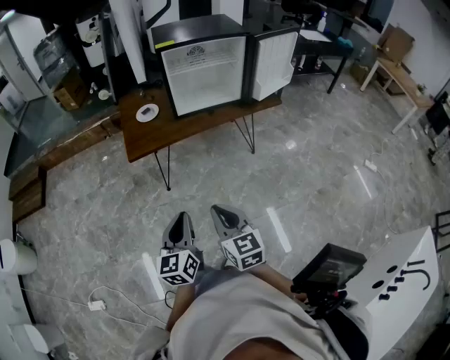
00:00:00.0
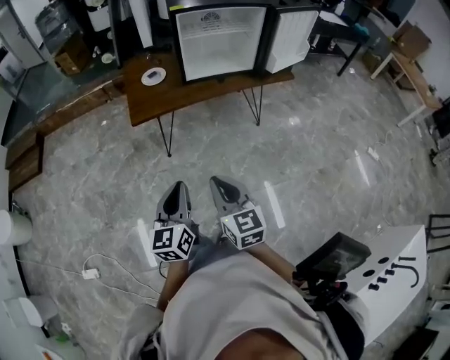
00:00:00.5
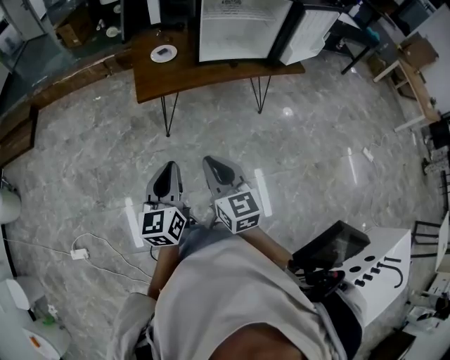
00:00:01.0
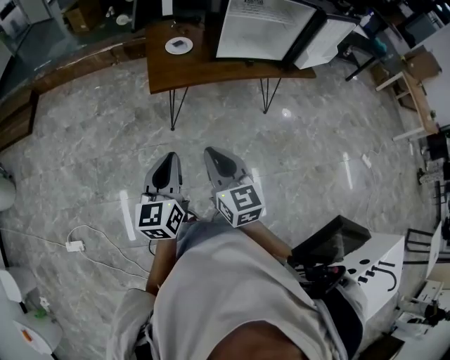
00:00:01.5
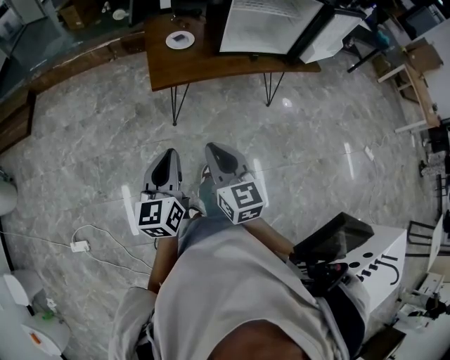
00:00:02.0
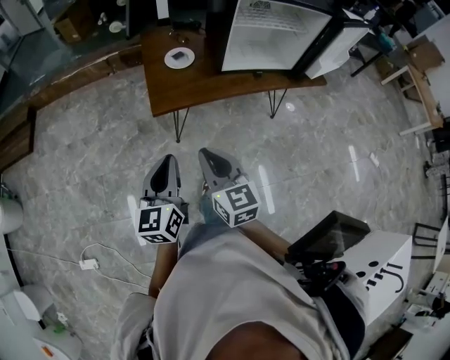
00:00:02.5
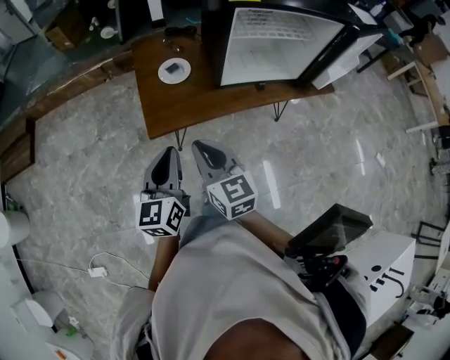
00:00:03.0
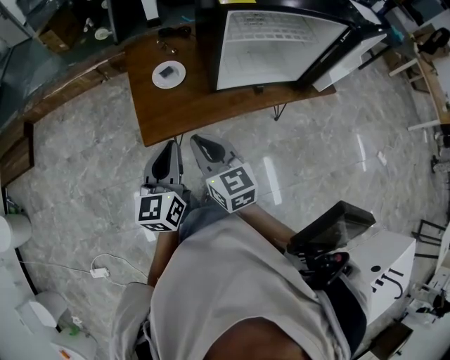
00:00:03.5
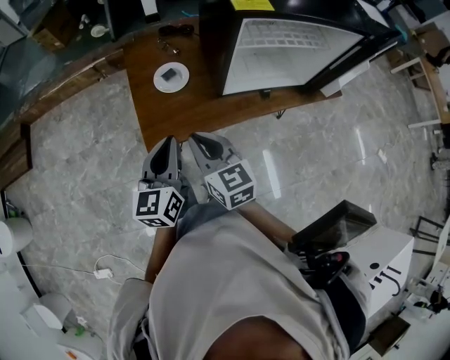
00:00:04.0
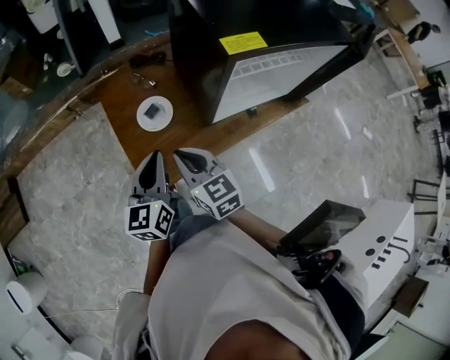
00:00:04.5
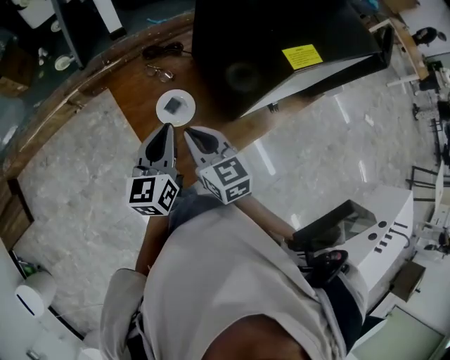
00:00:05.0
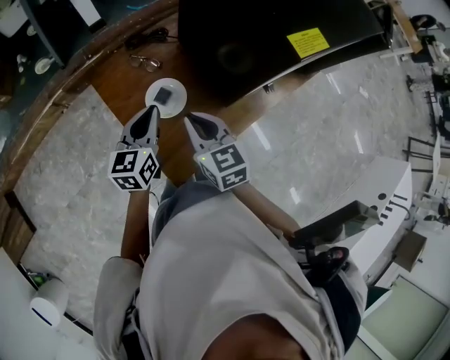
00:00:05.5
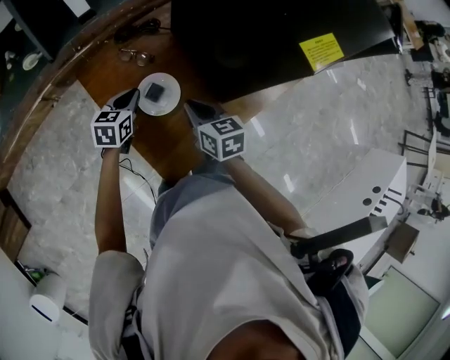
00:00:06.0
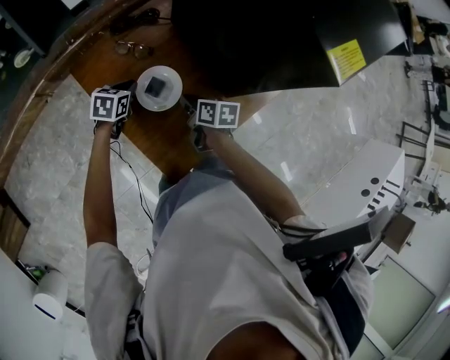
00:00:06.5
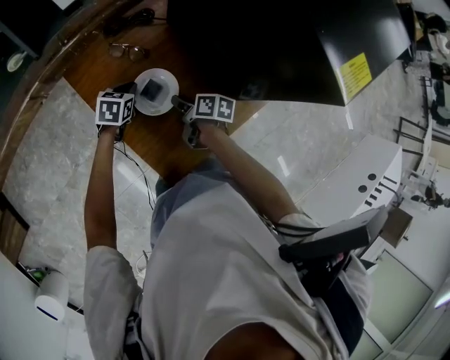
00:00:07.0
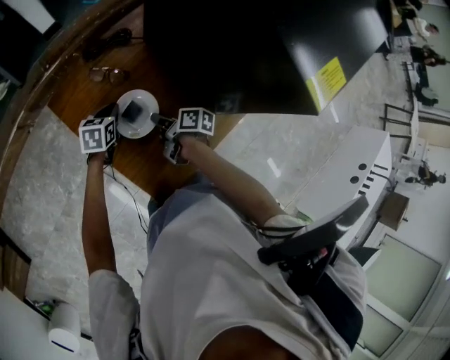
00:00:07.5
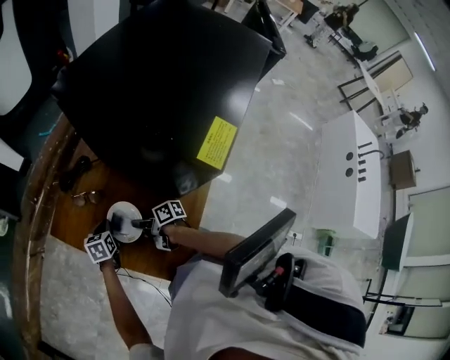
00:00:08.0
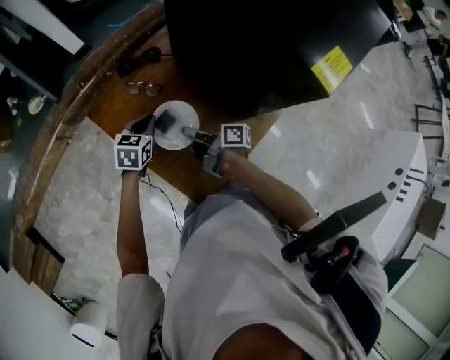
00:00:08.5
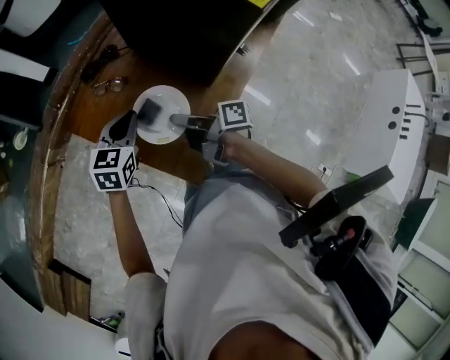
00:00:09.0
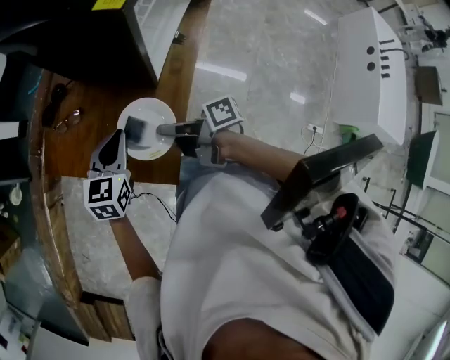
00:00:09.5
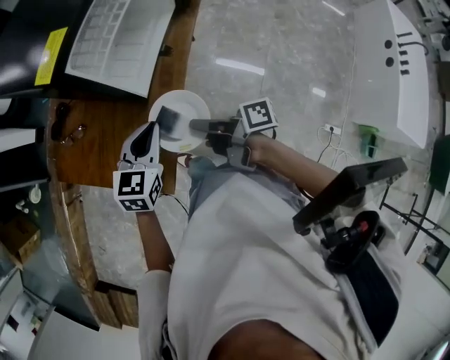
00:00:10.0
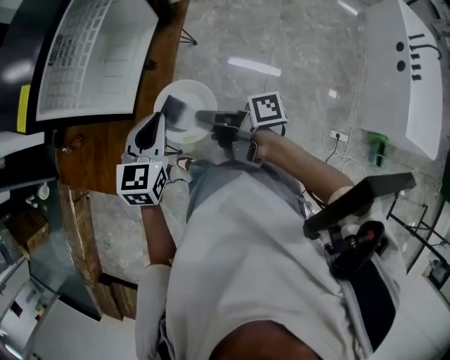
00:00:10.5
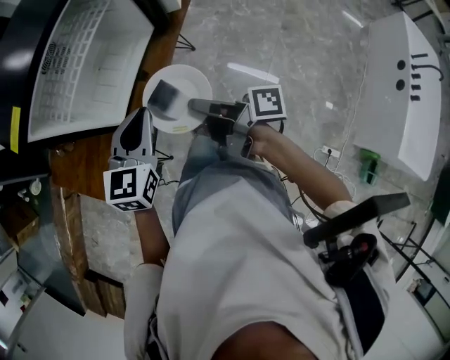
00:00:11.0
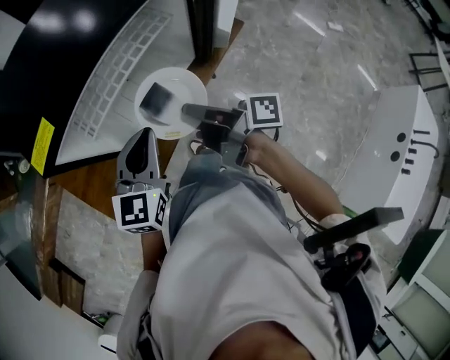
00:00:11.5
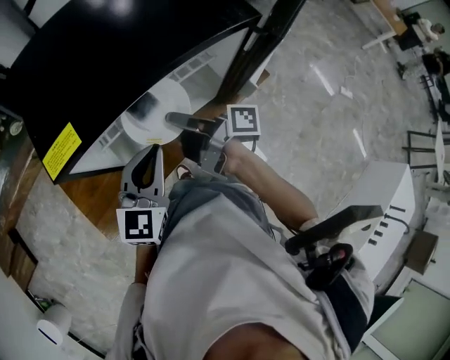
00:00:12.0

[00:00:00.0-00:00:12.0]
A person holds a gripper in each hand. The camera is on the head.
00:00:00.0 to 00:00:02.0: Both grippers travel together to the left and forward, roughly 30 cm.
00:00:02.0 to 00:00:04.0: The pair of grippers is taken forward, about 60 cm.
00:00:04.0 to 00:00:06.0: Both grippers are carried roughly 50 cm. The left gripper tilts its fingers about 30 degrees downward; the right gripper changes its angle by some 30 degrees.
00:00:06.0 to 00:00:08.0: Both grippers travel together downward and forward, some 10 cm. The right gripper rolls clockwise, seen from behind, by about 60 degrees.
00:00:08.0 to 00:00:10.0: Both grippers are carried to the right and backward, some 50 cm. The left gripper travels upward by roughly 20 cm, and changes its angle by some 40 degrees, while the right gripper rotates roughly 20 degrees.
00:00:10.0 to 00:00:12.0: The right gripper moves some 50 cm, and turns by some 30 degrees. Meanwhile the left gripper shifts by some 40 cm, and rotates roughly 40 degrees.

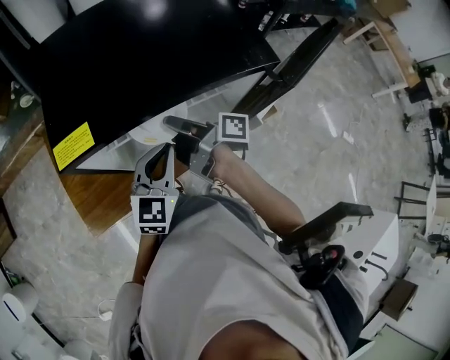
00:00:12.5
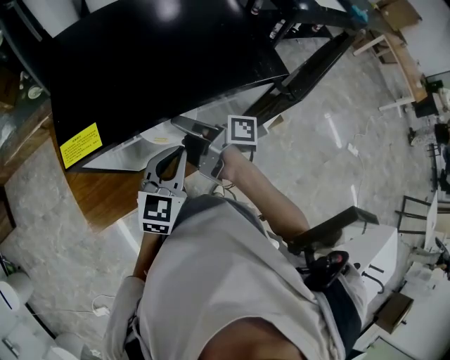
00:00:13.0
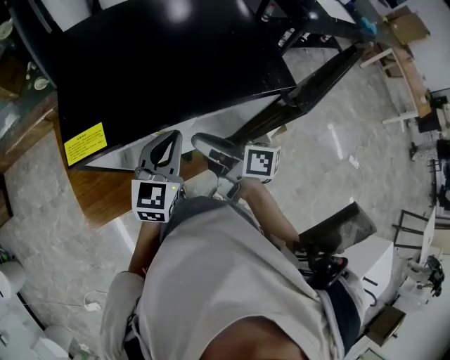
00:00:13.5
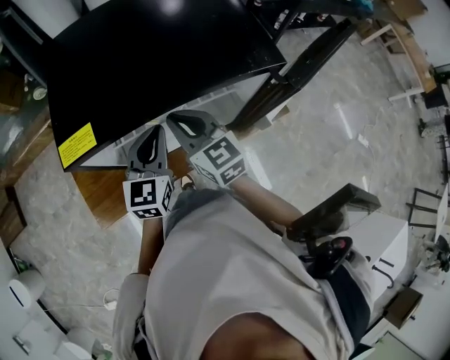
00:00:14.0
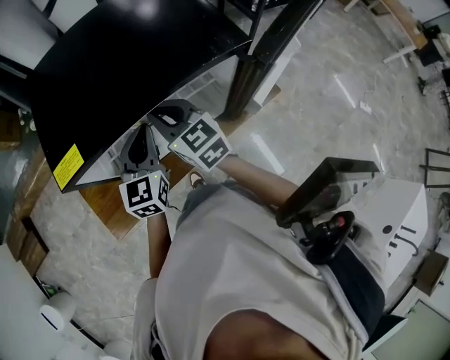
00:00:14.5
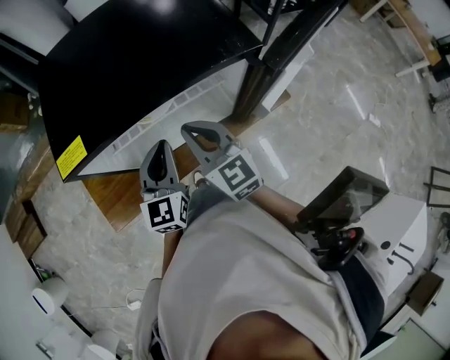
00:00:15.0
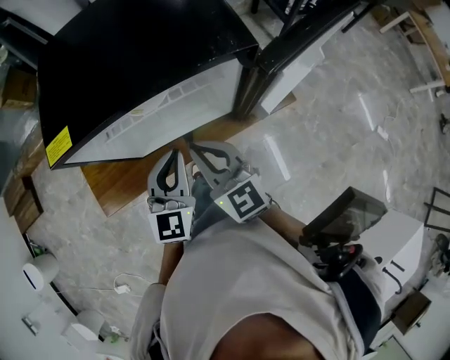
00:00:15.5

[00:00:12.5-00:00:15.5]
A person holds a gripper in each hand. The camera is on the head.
00:00:12.5 to 00:00:14.0: The left gripper travels forward by some 5 cm. The right gripper rolls counterclockwise, seen from behind, by approximately 80 degrees, and opens and closes again.
00:00:14.0 to 00:00:15.5: The grippers both shift backward and to the right by approximately 15 cm.

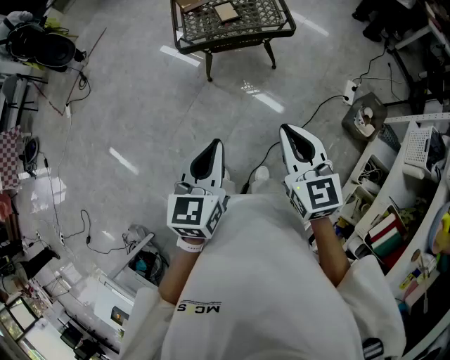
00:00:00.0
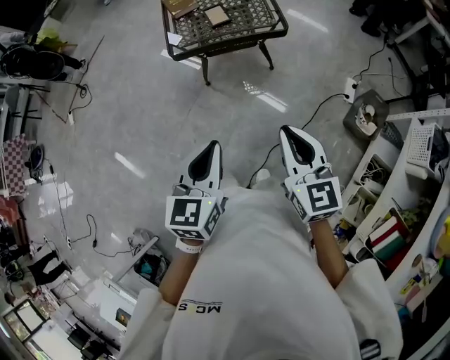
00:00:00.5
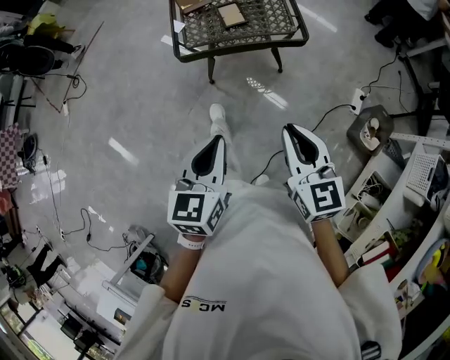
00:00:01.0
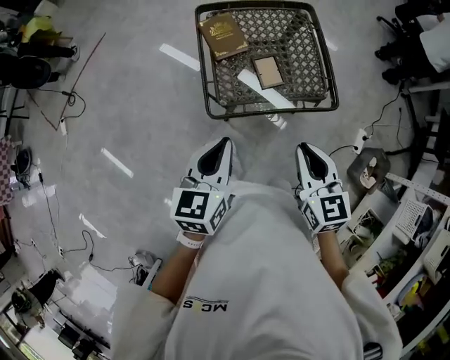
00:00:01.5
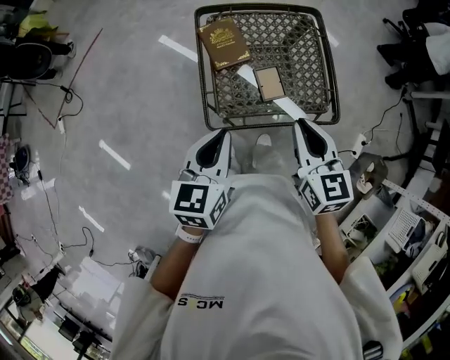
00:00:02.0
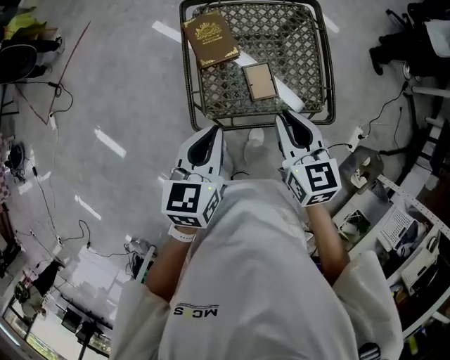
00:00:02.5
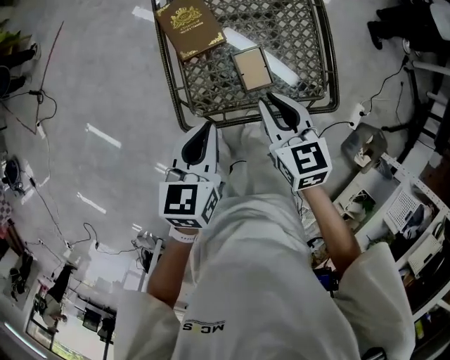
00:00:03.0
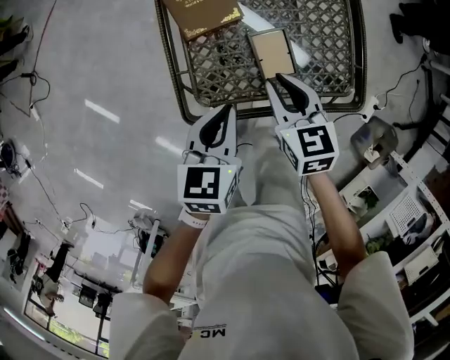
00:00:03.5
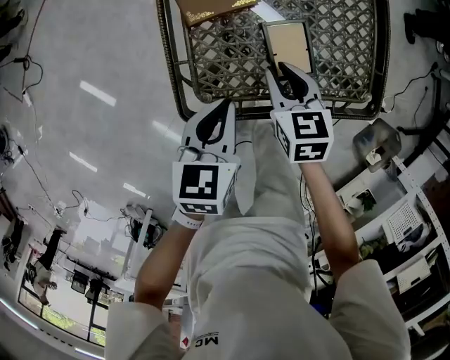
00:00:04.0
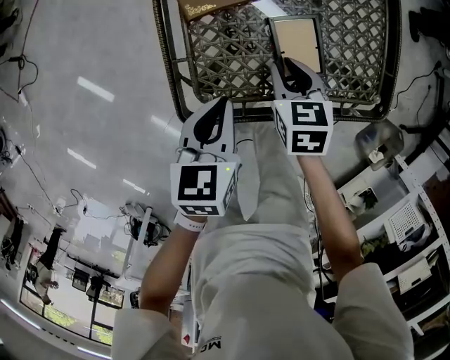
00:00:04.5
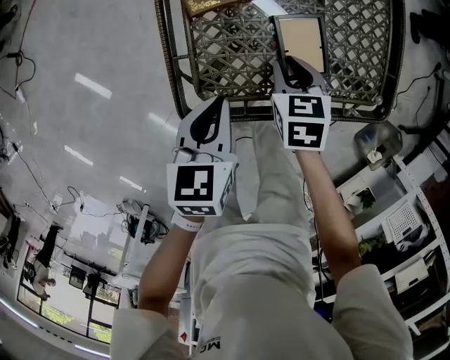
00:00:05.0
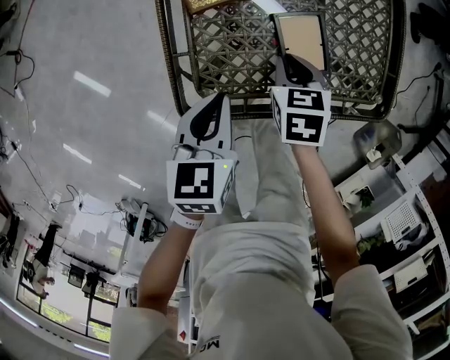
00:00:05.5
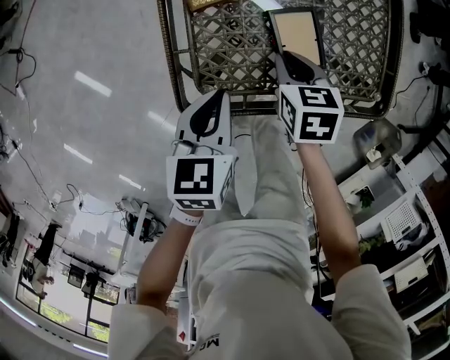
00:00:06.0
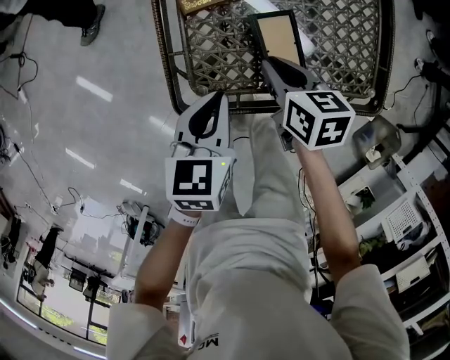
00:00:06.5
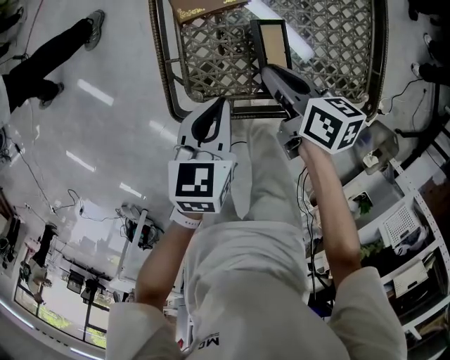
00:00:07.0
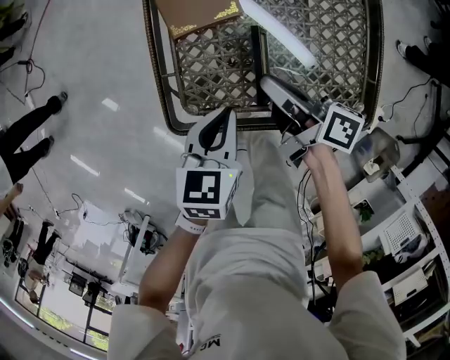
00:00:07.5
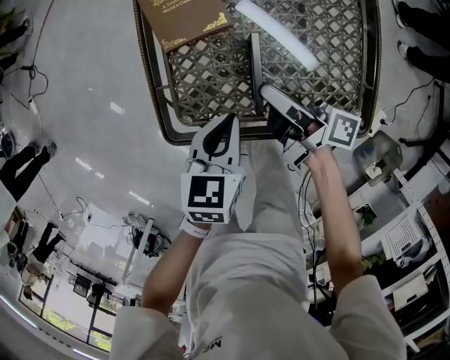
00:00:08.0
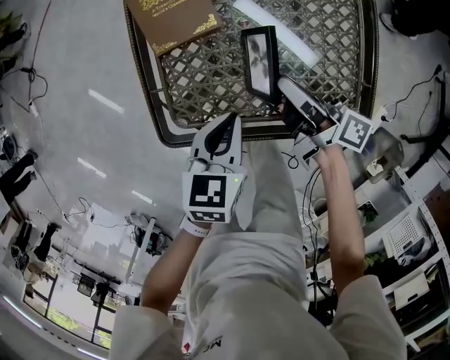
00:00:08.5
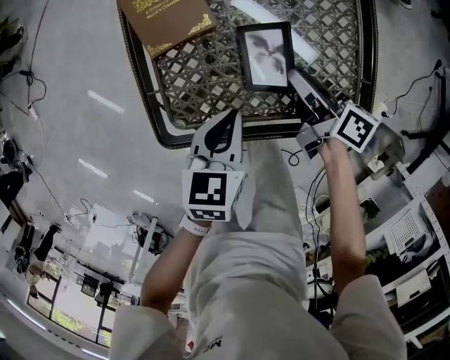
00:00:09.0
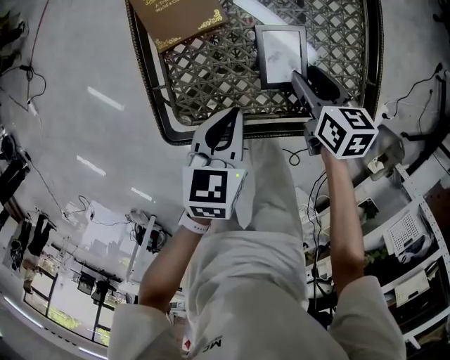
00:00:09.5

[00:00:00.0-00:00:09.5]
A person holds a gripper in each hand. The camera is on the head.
00:00:00.0 to 00:00:02.0: Both grippers are carried forward, roughly 50 cm.
00:00:02.0 to 00:00:04.0: The grippers both shift downward by about 30 cm. The right gripper changes its angle by about 30 degrees.
00:00:04.0 to 00:00:05.5: The right gripper goes approximately 5 cm downward.
00:00:05.5 to 00:00:07.5: The right gripper travels upward by some 10 cm, and tips its fingers upward by roughly 50 degrees; the left gripper shifts some 5 cm to the right.
00:00:07.5 to 00:00:09.5: The right gripper is displaced to the right and downward by roughly 15 cm, tips its fingers downward by about 30 degrees, and opens its fingers.

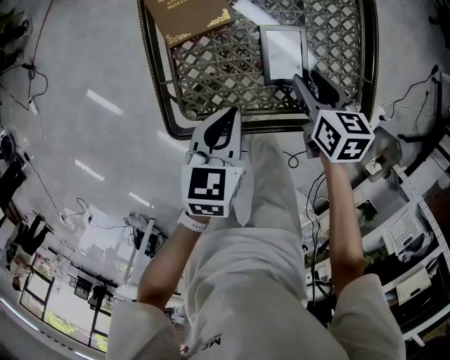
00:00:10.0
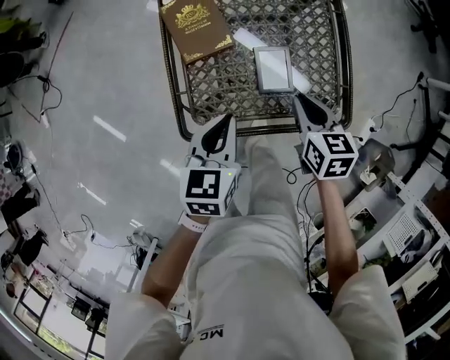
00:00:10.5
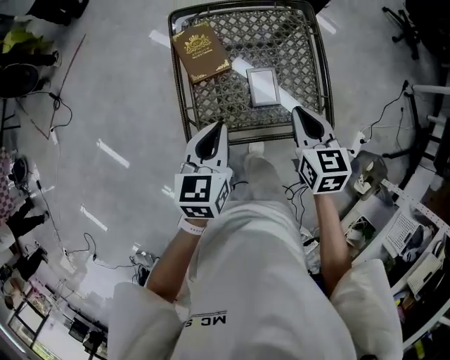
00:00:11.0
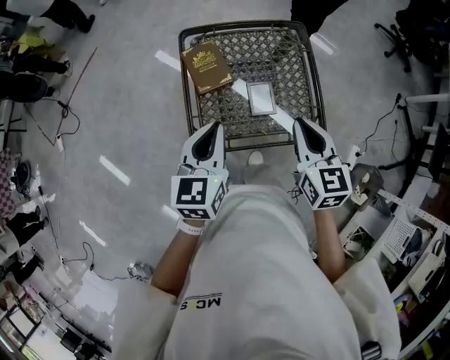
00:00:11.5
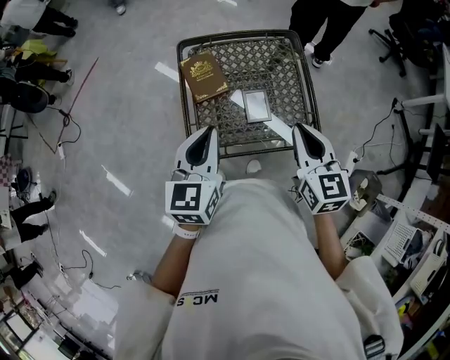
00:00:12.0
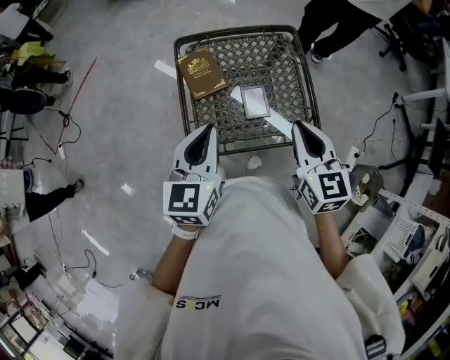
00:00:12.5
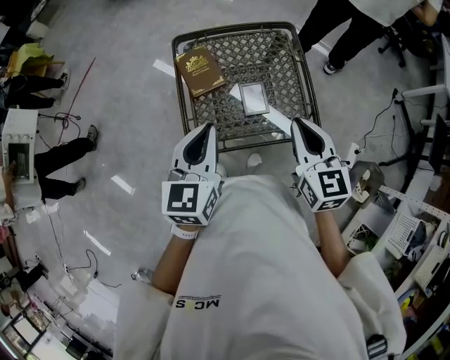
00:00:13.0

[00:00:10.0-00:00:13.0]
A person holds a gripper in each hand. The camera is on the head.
00:00:10.0 to 00:00:11.5: Both grippers travel together upward, about 30 cm. The right gripper turns by roughly 30 degrees, and closes; the left gripper changes its angle by approximately 20 degrees.
00:00:11.5 to 00:00:13.0: The grippers move only a little.
